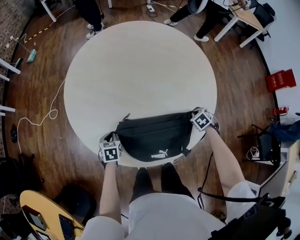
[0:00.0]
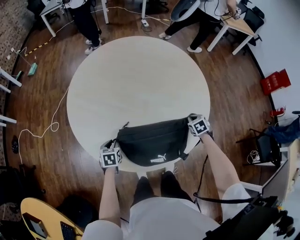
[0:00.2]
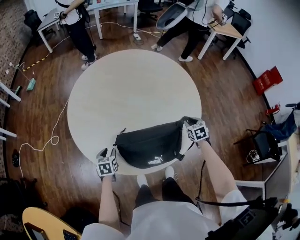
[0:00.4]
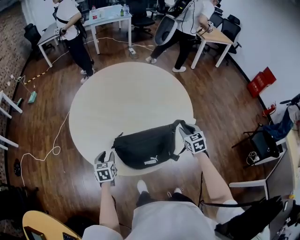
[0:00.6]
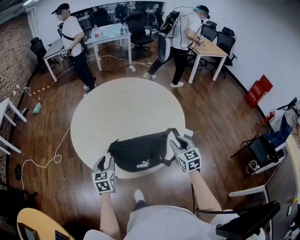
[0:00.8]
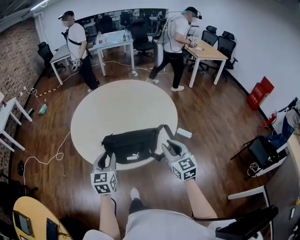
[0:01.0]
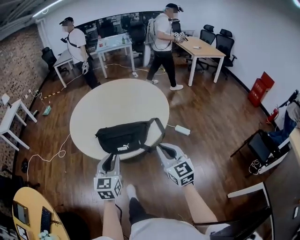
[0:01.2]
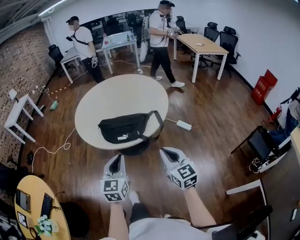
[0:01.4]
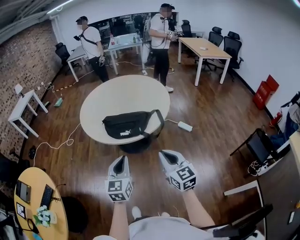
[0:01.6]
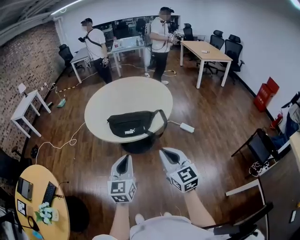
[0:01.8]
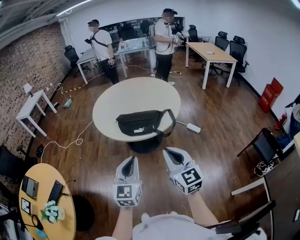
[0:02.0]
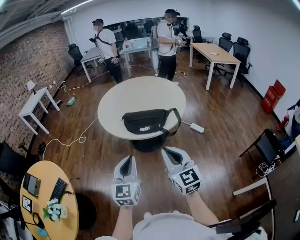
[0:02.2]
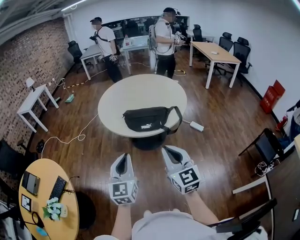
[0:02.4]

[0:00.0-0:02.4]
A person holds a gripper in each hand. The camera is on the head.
0:00.0 to 0:01.2: The left gripper changes place by roughly 50 cm, and points its fingers some 50 degrees further upward; the right gripper ends up some 50 cm from where it was, angles its fingers upward, by roughly 70 degrees, and opens, then closes again.
0:01.2 to 0:02.4: The left gripper shifts roughly 25 cm backward and to the left. The right gripper moves backward, to the left and upward, approximately 25 cm.

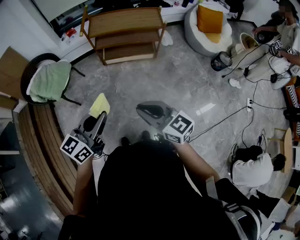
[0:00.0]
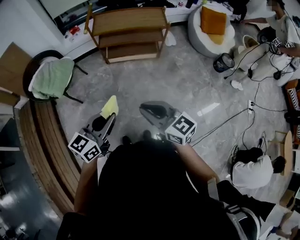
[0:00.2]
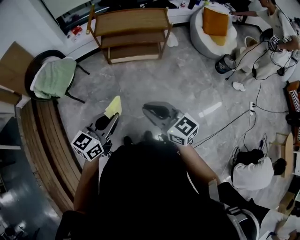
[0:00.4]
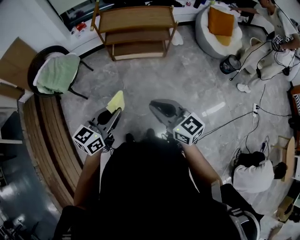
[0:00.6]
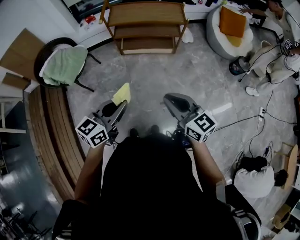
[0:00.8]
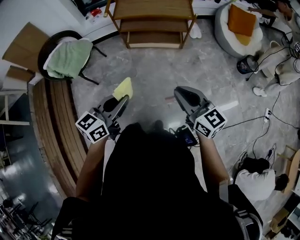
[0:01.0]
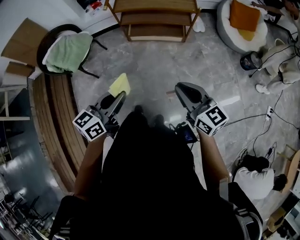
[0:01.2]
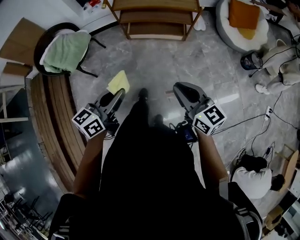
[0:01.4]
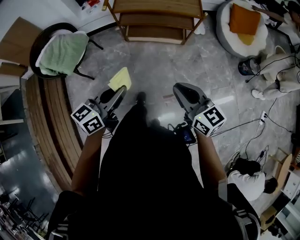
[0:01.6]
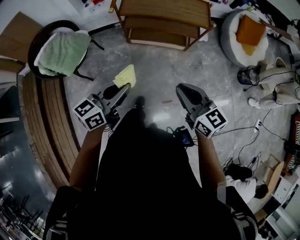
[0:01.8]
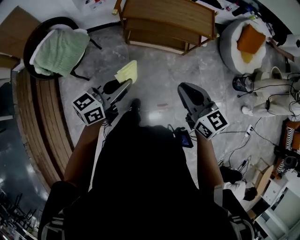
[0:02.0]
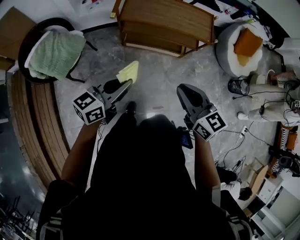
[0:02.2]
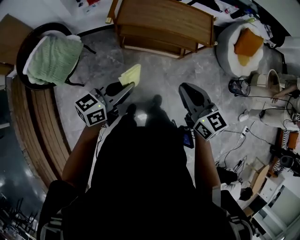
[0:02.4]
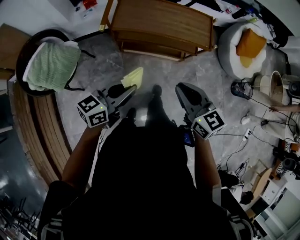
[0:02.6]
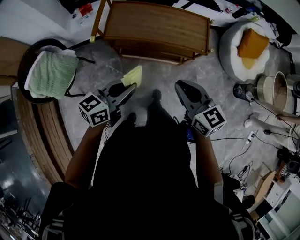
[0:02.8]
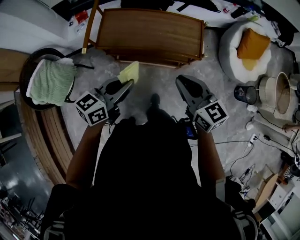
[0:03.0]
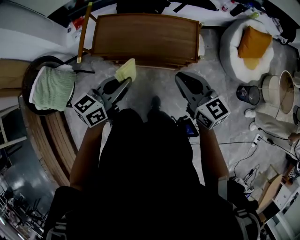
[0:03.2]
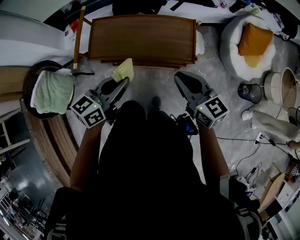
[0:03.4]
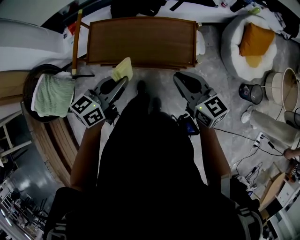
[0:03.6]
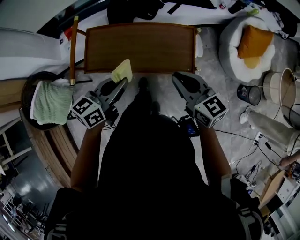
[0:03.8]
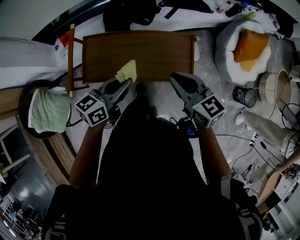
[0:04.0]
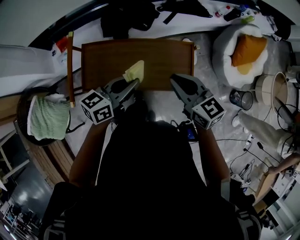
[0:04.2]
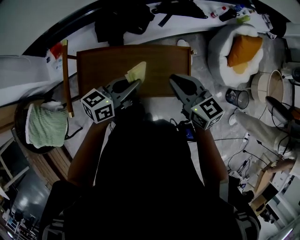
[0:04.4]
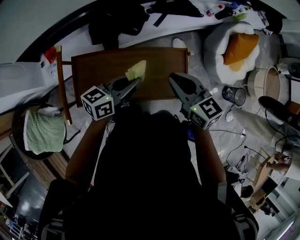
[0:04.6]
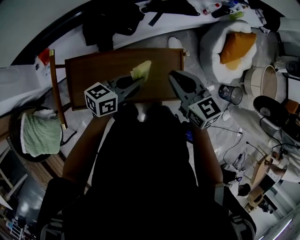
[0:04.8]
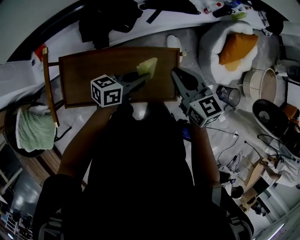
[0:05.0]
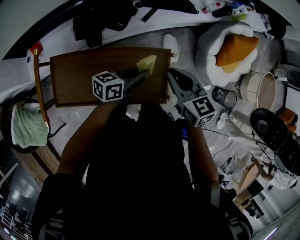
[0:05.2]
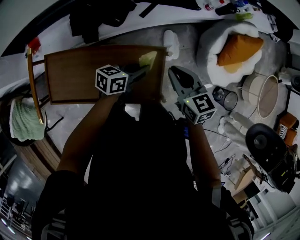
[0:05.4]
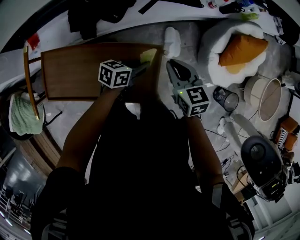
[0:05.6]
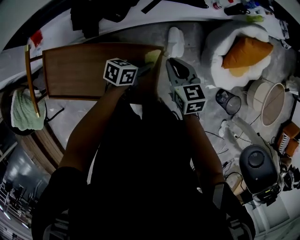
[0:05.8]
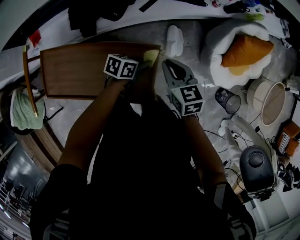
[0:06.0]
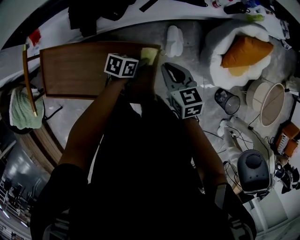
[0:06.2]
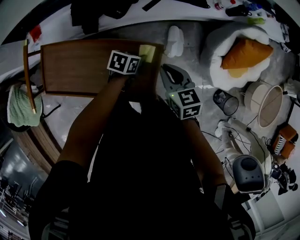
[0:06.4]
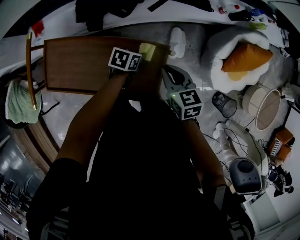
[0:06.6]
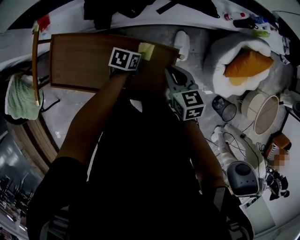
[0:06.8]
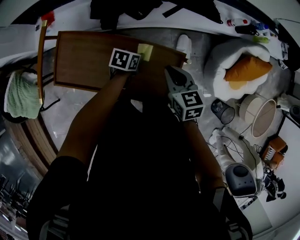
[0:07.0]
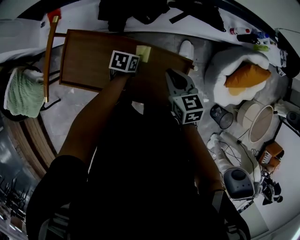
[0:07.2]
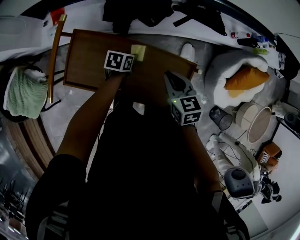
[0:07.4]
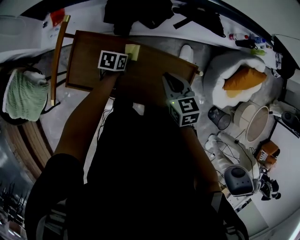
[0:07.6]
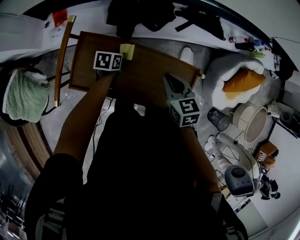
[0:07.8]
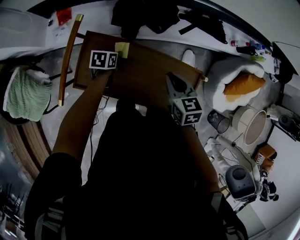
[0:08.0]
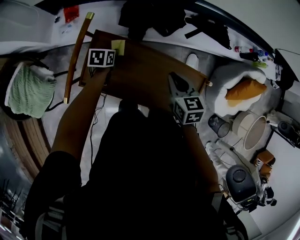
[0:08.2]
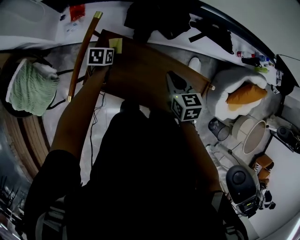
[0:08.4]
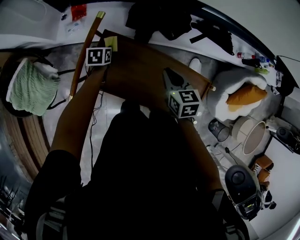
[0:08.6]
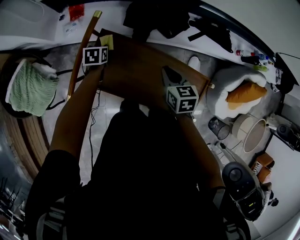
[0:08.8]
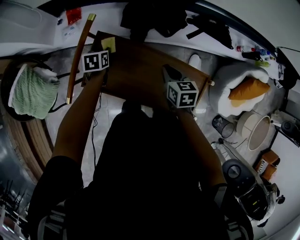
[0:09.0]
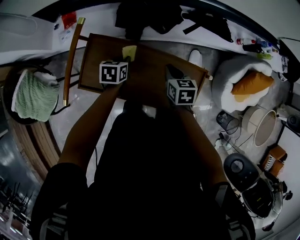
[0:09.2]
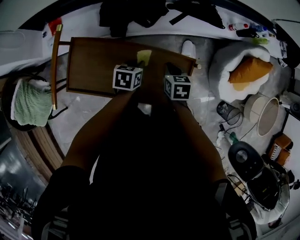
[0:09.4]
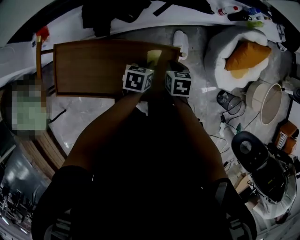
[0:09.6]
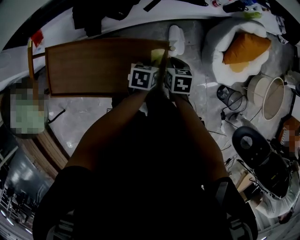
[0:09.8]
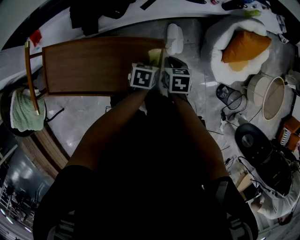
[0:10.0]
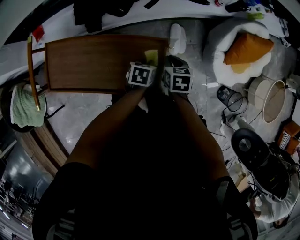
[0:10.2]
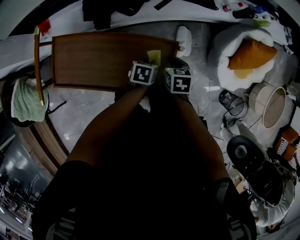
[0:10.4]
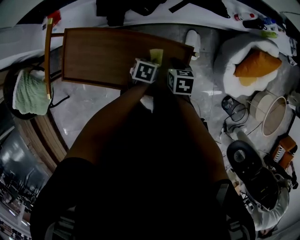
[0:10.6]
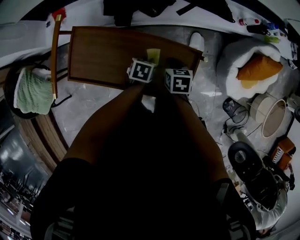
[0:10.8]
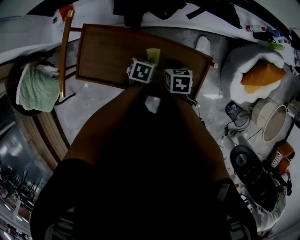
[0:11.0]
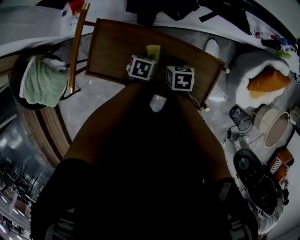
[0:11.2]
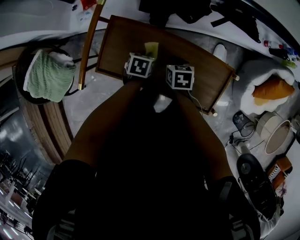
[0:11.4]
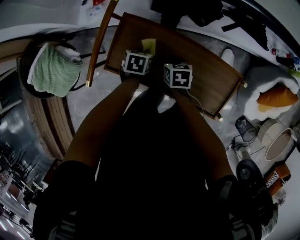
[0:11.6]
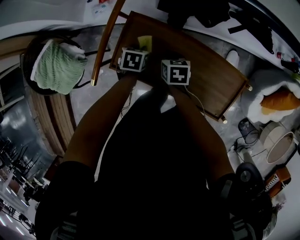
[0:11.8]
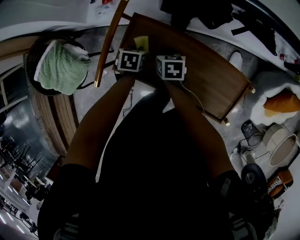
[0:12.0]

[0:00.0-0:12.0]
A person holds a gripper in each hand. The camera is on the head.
0:00.0 to 0:01.6: The left gripper heads forward and downward, covering roughly 15 cm. The right gripper goes some 15 cm forward and to the right.
0:01.6 to 0:03.0: Both grippers move forward, about 35 cm.
0:03.0 to 0:04.4: The two grippers go roughly 30 cm forward.
0:04.4 to 0:06.0: The left gripper moves to the right, downward and forward, some 35 cm, and turns by about 30 degrees. Meanwhile the right gripper shifts approximately 25 cm forward, to the right and downward.
0:06.0 to 0:07.6: The left gripper moves to the left, some 30 cm, and rotates about 30 degrees. The right gripper travels to the left by about 20 cm.
0:07.6 to 0:09.0: The left gripper is displaced to the left by some 20 cm, and swivels approximately 20 degrees, while the right gripper heads to the left, covering roughly 5 cm.
0:09.0 to 0:10.4: The left gripper changes place by approximately 50 cm, and turns by some 30 degrees. Meanwhile the right gripper moves some 25 cm.
0:10.4 to 0:12.0: The pair of grippers is taken roughly 40 cm. The left gripper rotates approximately 20 degrees.

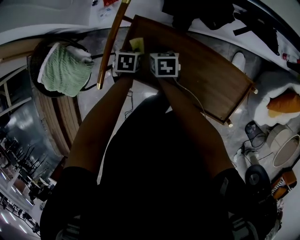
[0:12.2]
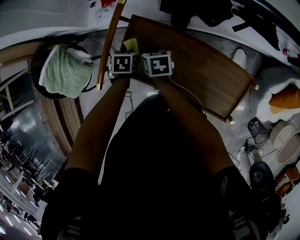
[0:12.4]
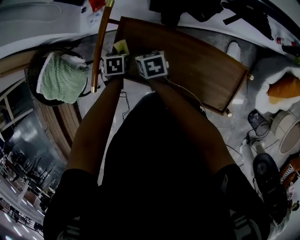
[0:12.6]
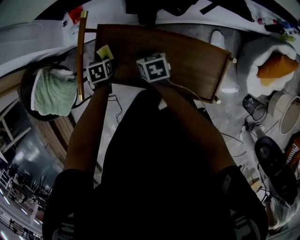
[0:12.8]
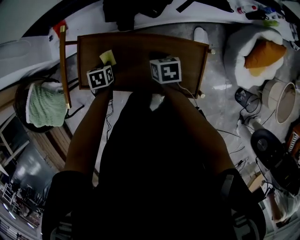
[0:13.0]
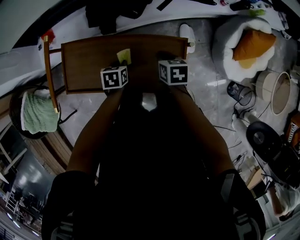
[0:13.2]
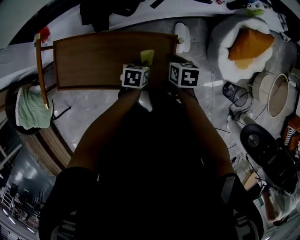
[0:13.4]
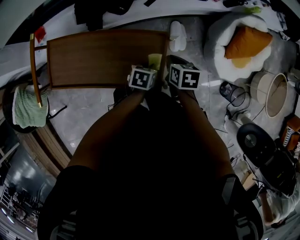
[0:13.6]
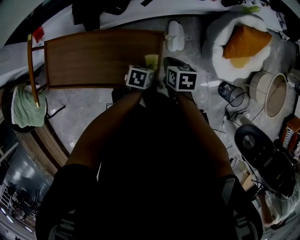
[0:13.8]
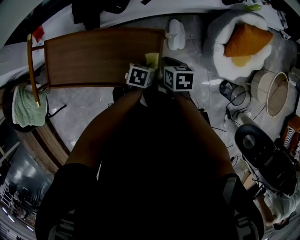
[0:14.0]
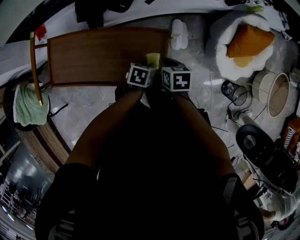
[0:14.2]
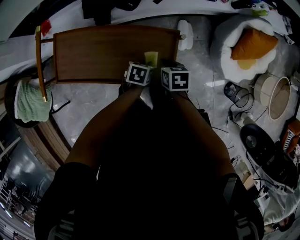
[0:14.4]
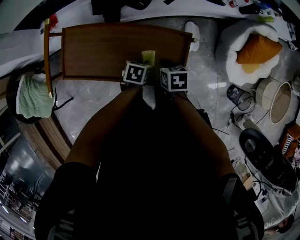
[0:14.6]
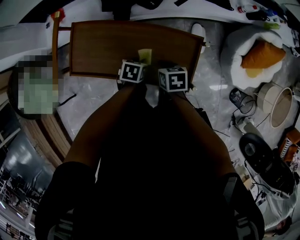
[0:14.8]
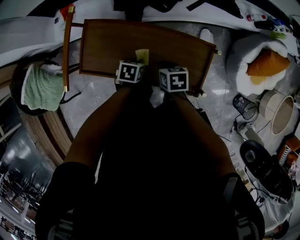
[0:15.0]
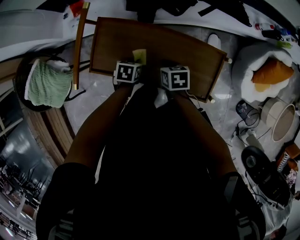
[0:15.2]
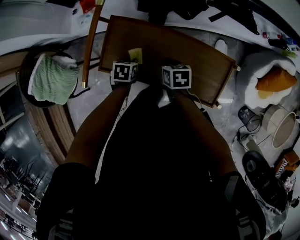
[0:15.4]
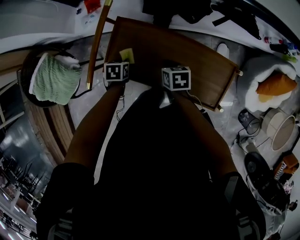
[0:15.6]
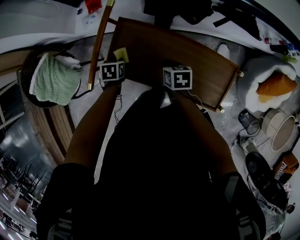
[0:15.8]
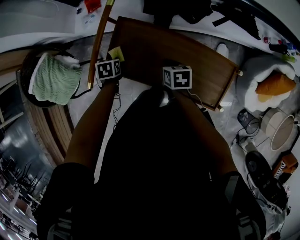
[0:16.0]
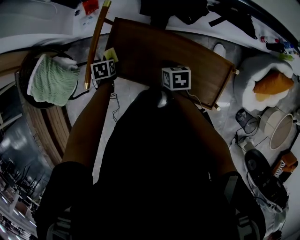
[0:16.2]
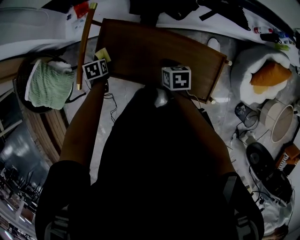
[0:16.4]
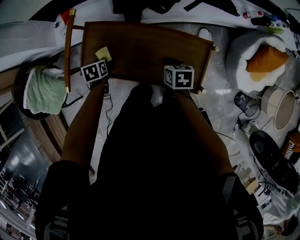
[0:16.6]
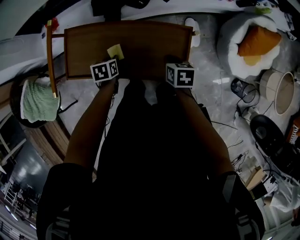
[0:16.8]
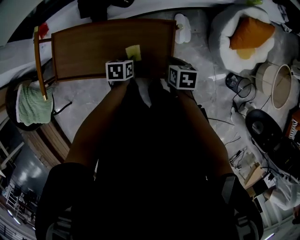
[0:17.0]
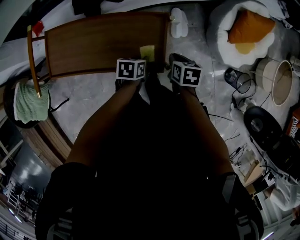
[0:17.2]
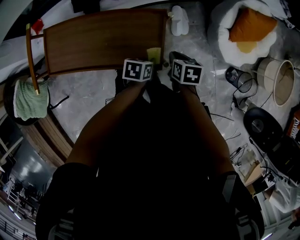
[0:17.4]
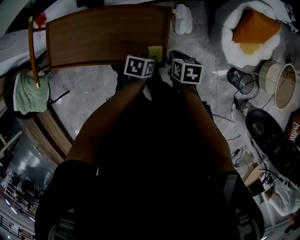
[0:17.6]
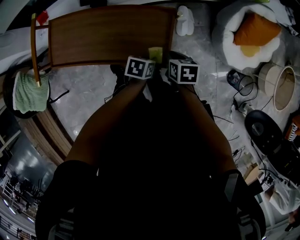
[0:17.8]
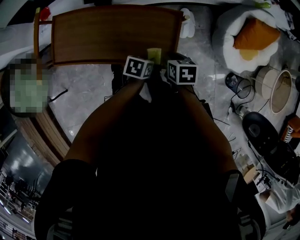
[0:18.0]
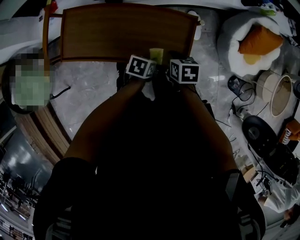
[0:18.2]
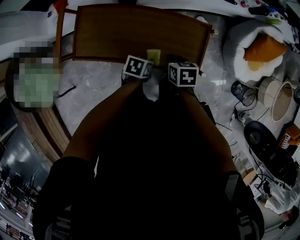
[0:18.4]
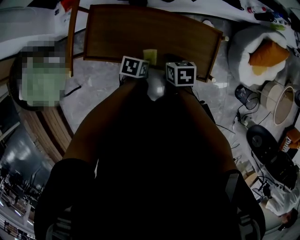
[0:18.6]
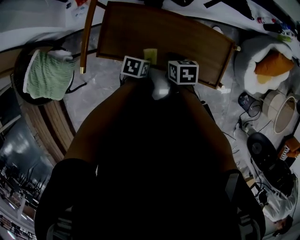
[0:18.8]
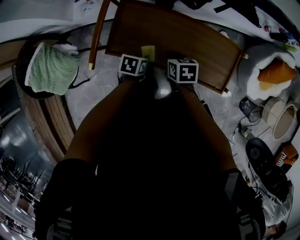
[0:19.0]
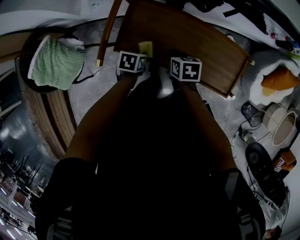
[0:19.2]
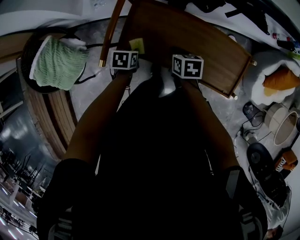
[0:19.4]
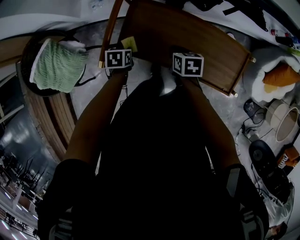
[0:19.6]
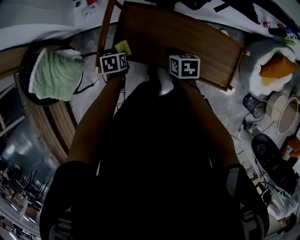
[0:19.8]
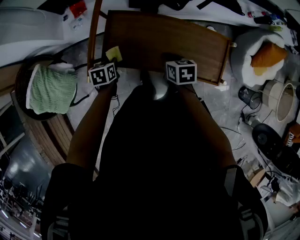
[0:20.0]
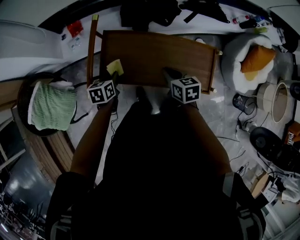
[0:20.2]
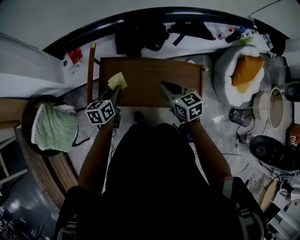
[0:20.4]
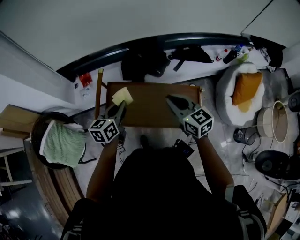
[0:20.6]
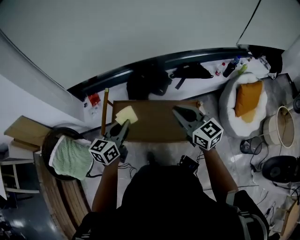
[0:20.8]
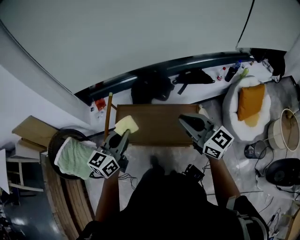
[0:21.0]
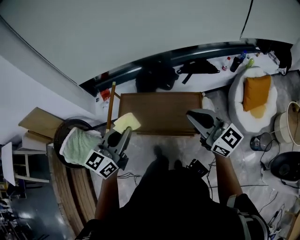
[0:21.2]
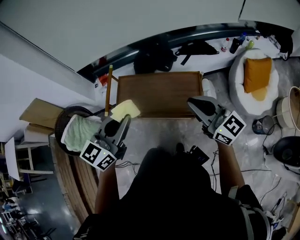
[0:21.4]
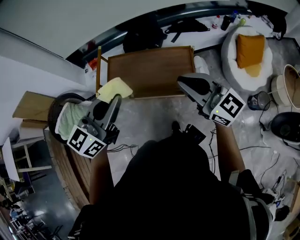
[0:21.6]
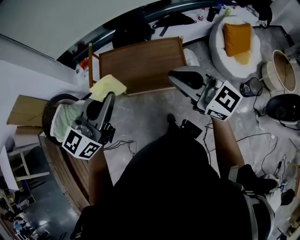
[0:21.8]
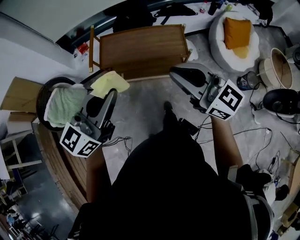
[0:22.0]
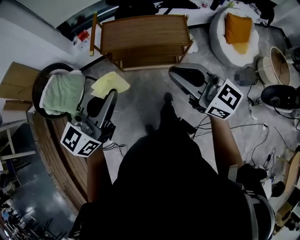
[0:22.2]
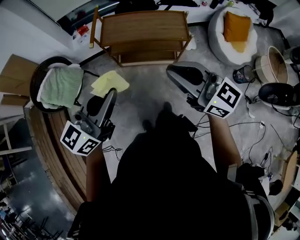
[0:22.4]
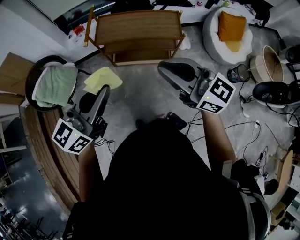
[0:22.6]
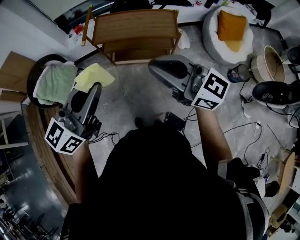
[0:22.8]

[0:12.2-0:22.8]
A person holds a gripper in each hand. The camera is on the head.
0:12.2 to 0:13.8: The pair of grippers is taken approximately 50 cm. The left gripper swivels roughly 30 degrees. Meanwhile the right gripper swivels some 20 degrees.
0:13.8 to 0:15.2: Both grippers travel together to the left, roughly 30 cm.
0:15.2 to 0:16.8: The right gripper changes place by about 15 cm.
0:16.8 to 0:18.2: The right gripper reaches about 15 cm to the right, then returns. Meanwhile the left gripper travels to the right by approximately 20 cm, and turns by roughly 20 degrees.
0:18.2 to 0:19.8: The left gripper shifts by some 40 cm, and swivels roughly 30 degrees, while the right gripper moves roughly 30 cm.
0:19.8 to 0:21.2: The right gripper goes some 50 cm upward, to the right and backward, and tips its fingers upward by roughly 60 degrees. Meanwhile the left gripper is displaced upward by about 50 cm, and points its fingers roughly 60 degrees further upward.
0:21.2 to 0:22.8: The grippers both shift backward by about 35 cm.
